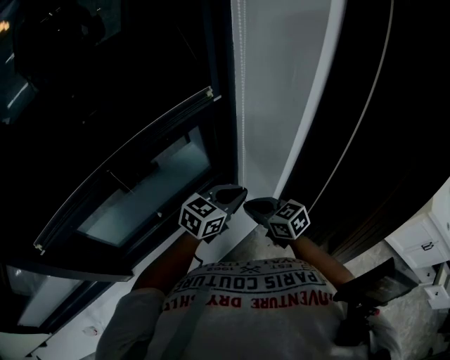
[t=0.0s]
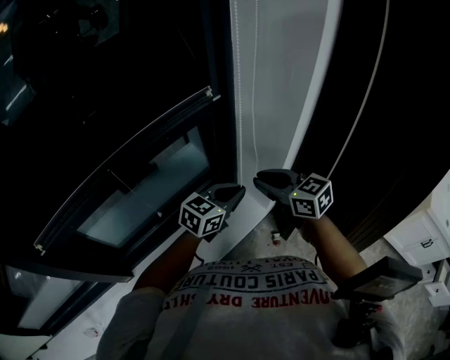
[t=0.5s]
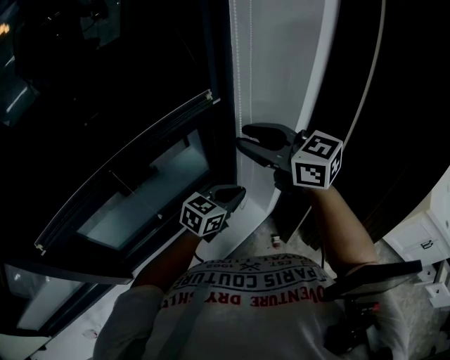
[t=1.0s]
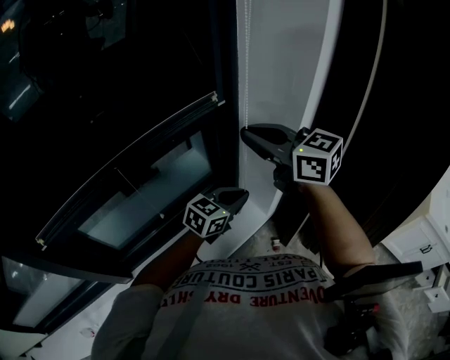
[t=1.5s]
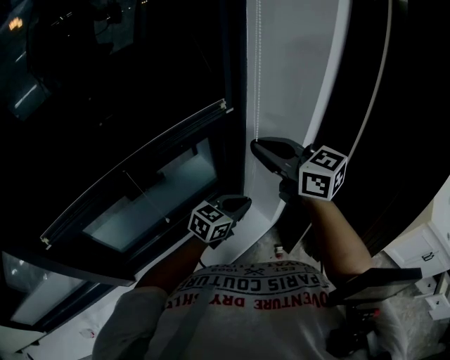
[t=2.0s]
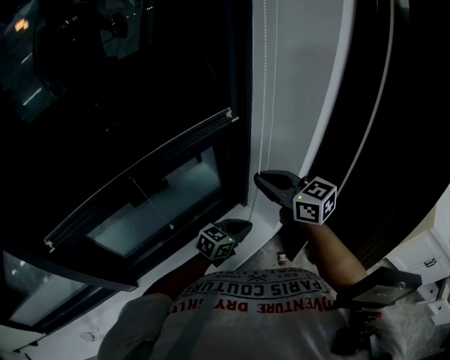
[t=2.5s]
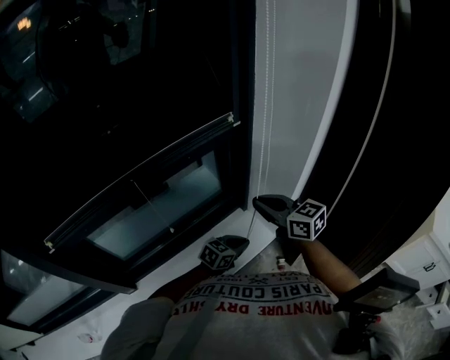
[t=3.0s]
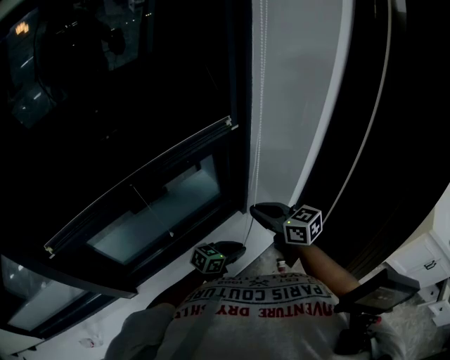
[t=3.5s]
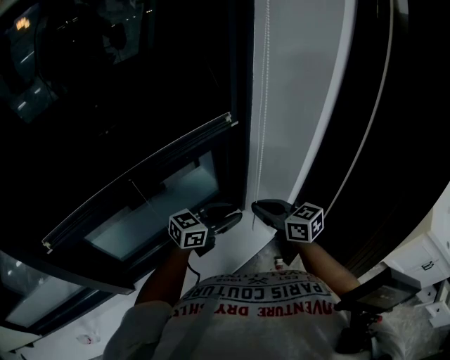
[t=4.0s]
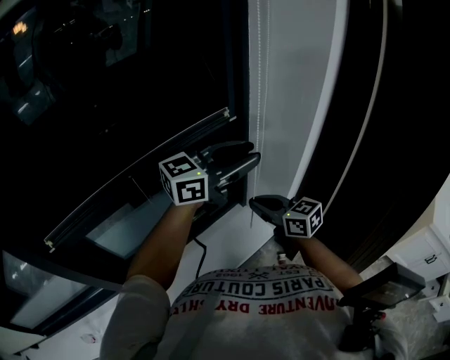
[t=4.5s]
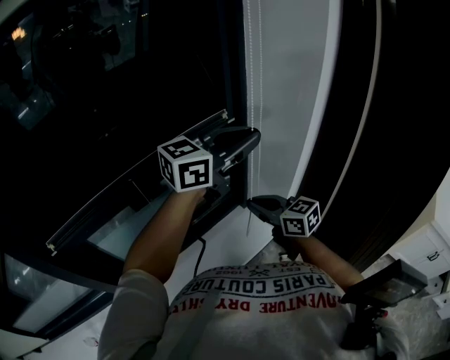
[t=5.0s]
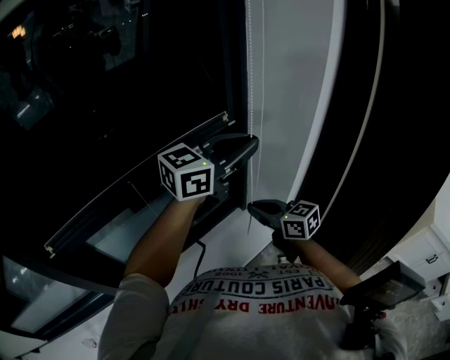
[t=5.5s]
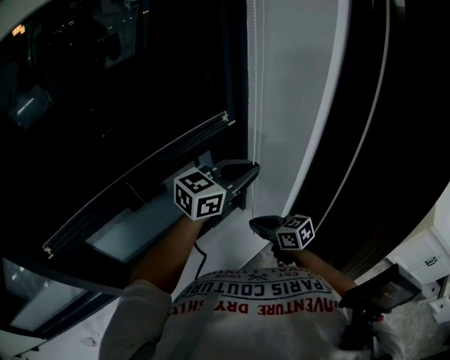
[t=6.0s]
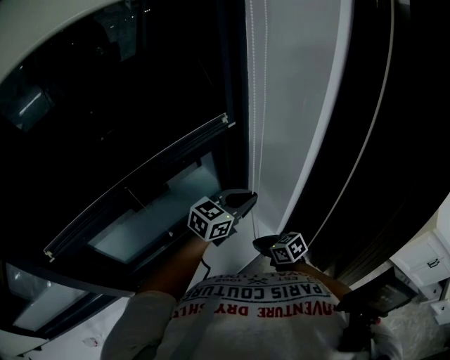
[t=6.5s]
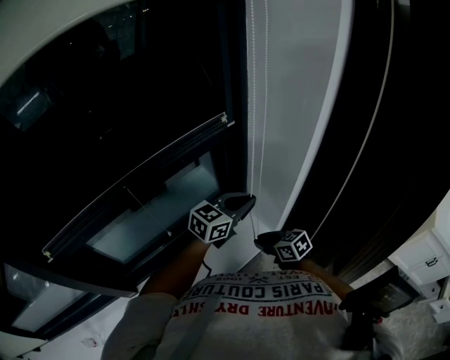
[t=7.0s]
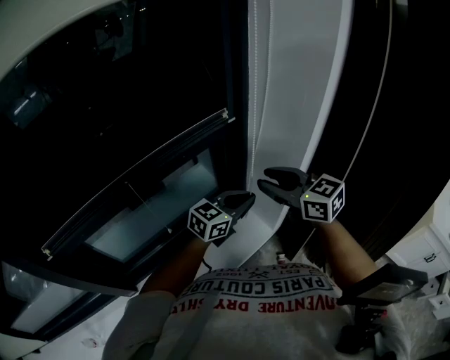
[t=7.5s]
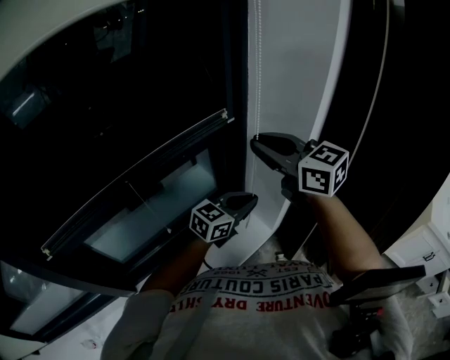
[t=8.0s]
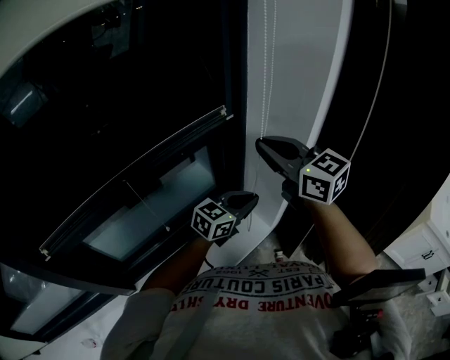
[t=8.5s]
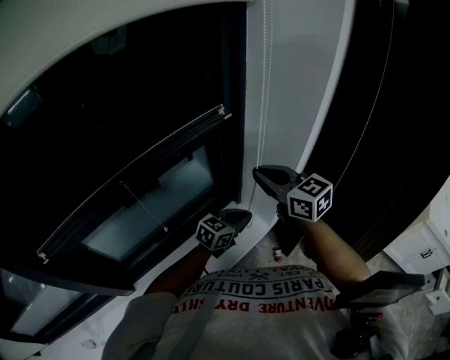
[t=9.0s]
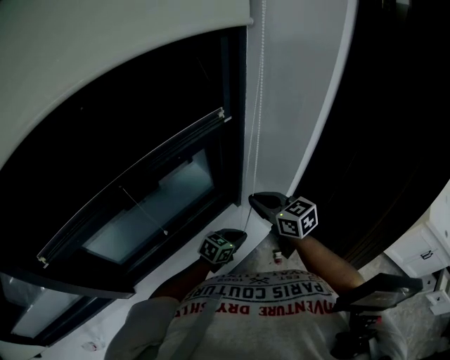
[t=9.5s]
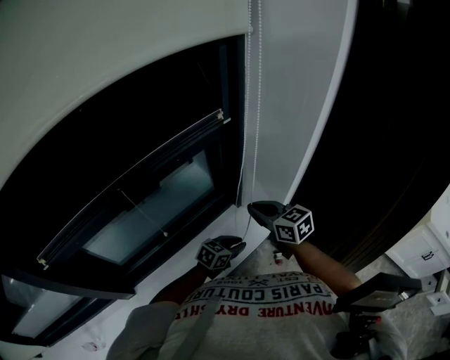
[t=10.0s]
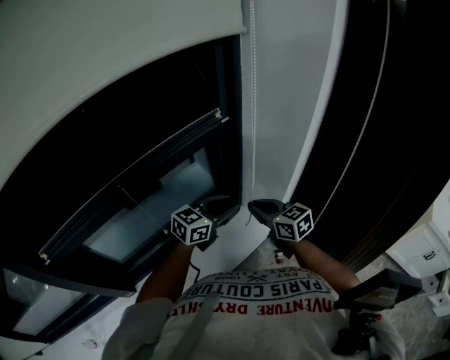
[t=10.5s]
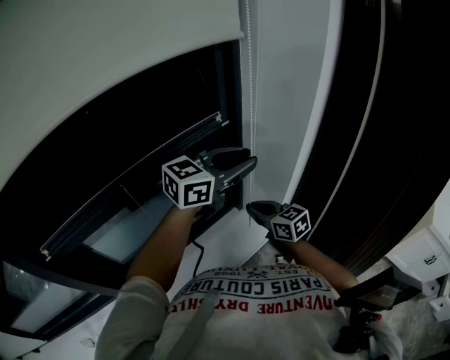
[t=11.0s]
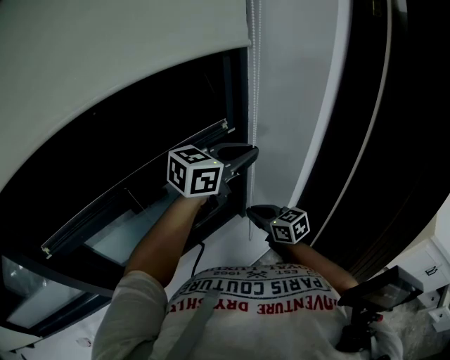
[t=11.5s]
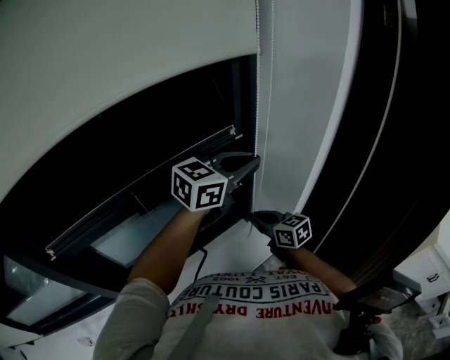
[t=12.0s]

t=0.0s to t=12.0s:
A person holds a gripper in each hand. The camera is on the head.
t=0.0s to t=2.0s: The right gripper shifts some 30 cm upward, swivels approximately 30 degrees, and opens, then closes once more.
t=2.0s to t=4.0s: The left gripper travels downward and back again, approximately 15 cm each way, and opens its fingers. Meanwhile the right gripper is displaced downward by about 20 cm.
t=4.0s to t=6.0s: The left gripper heads upward, covering roughly 15 cm, and closes its fingers. The right gripper moves downward, some 10 cm.
t=6.0s to t=8.0s: The left gripper travels downward by roughly 15 cm, while the right gripper goes about 30 cm upward, rotates about 30 degrees, and opens, then closes once more.
t=8.0s to t=10.0s: The grippers both shift downward by about 25 cm. The left gripper swivels some 30 degrees, while the right gripper swivels some 20 degrees.
t=10.0s to t=12.0s: The left gripper moves upward, approximately 40 cm, and changes its angle by about 30 degrees.

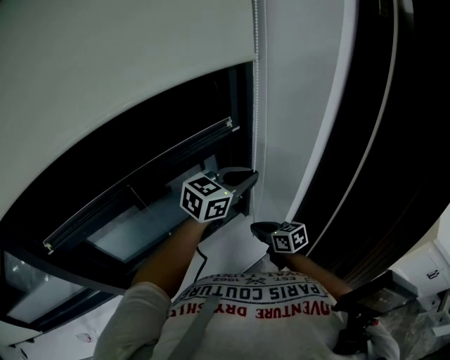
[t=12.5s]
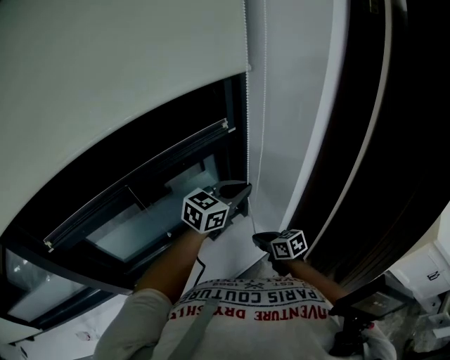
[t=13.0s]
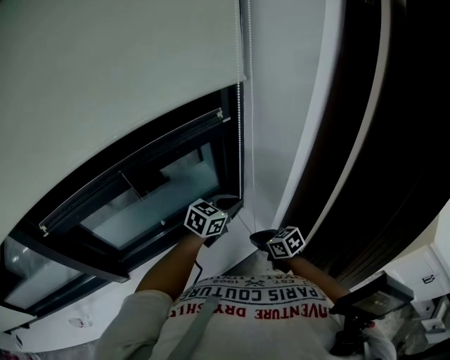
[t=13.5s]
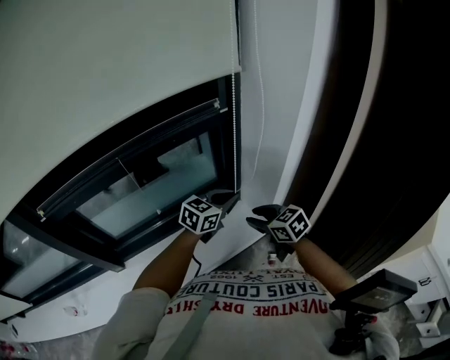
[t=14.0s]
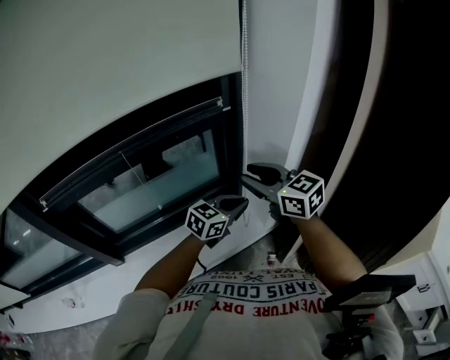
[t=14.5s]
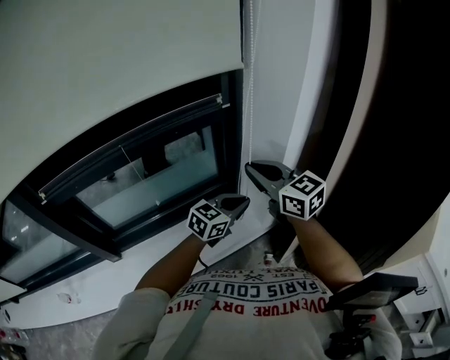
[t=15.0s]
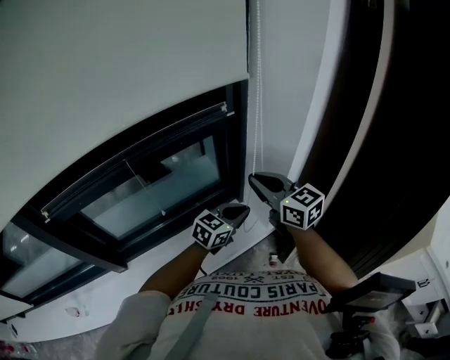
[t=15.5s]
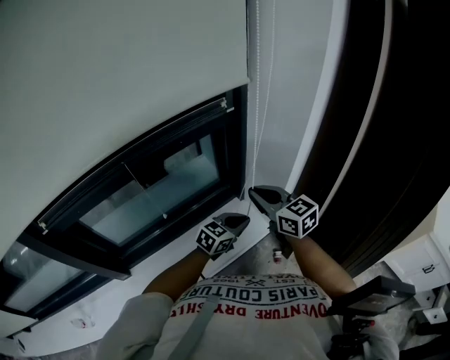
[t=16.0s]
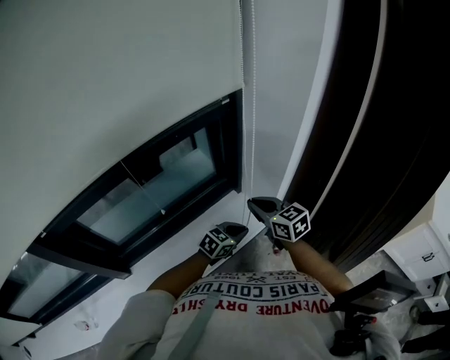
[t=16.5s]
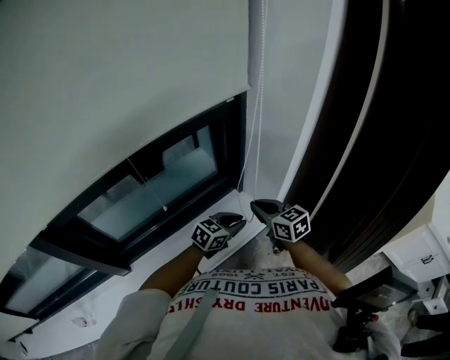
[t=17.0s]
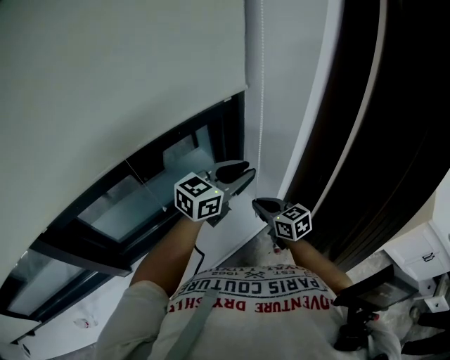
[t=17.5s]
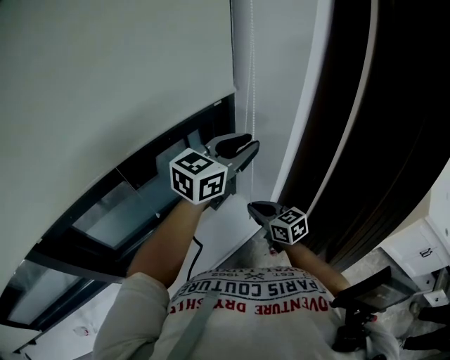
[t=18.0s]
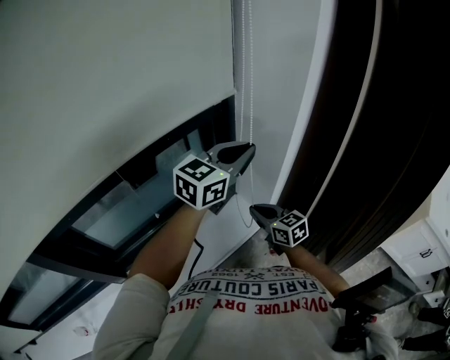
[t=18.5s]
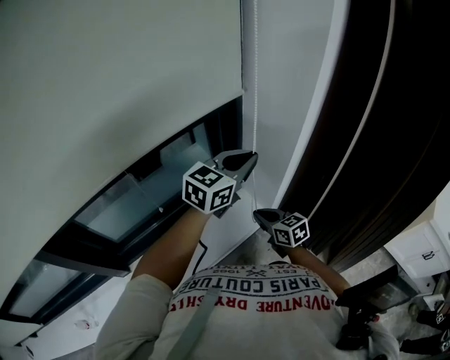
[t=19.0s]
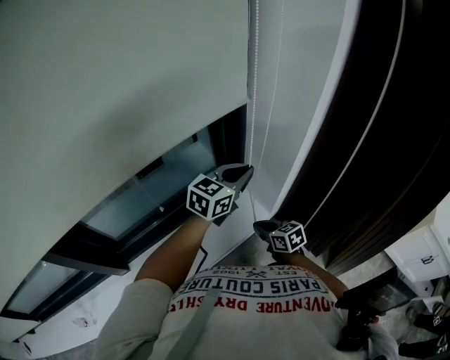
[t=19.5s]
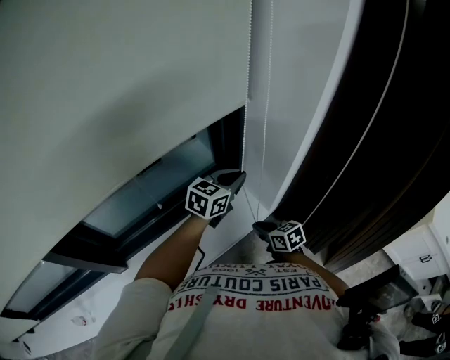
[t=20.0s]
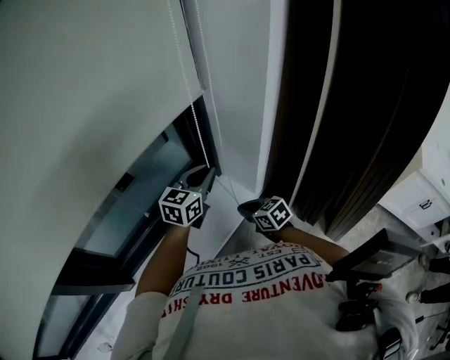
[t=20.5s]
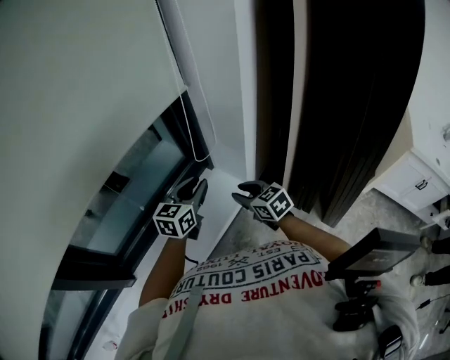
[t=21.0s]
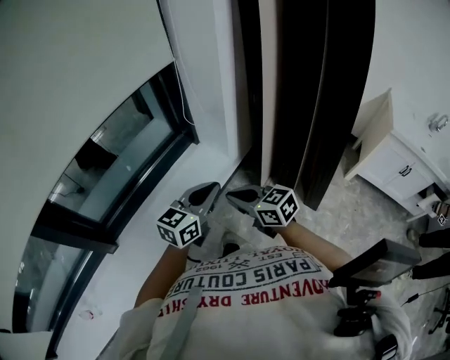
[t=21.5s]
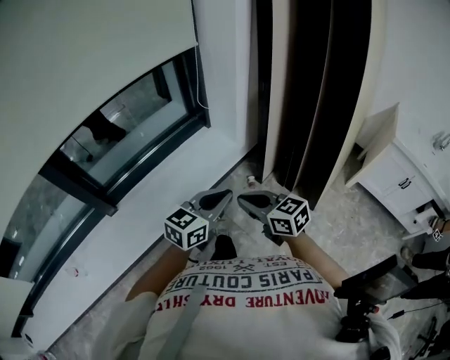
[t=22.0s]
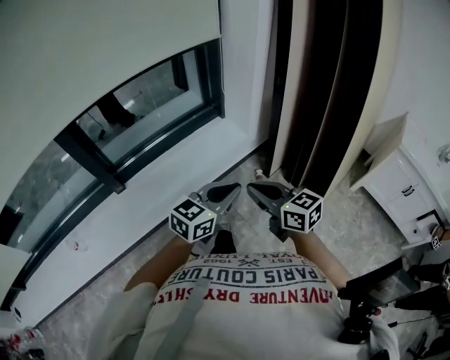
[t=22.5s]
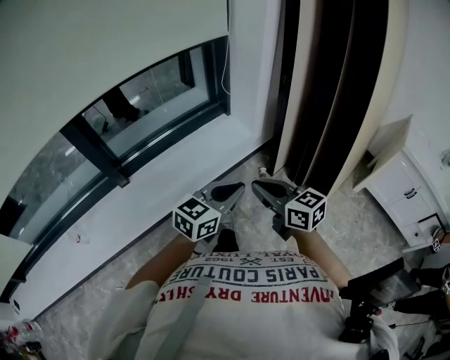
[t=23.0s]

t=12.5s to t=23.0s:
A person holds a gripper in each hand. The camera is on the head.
t=12.5s to t=14.5s: The right gripper moves upward, some 20 cm, swivels about 30 degrees, and opens, while the left gripper goes approximately 15 cm downward and backward.
t=14.5s to t=16.5s: The grippers both shift downward by about 15 cm. The right gripper closes up.
t=16.5s to t=19.0s: The right gripper shifts roughly 10 cm downward; the left gripper is displaced upward by approximately 30 cm, rotates roughly 30 degrees, and opens, then closes again.
t=19.0s to t=21.0s: The right gripper opens its fingers; the left gripper goes about 15 cm downward, and opens its fingers.
t=21.0s to t=23.0s: The pair of grippers is taken backward, roughly 50 cm. The left gripper closes up, while the right gripper turns by about 20 degrees, and closes.

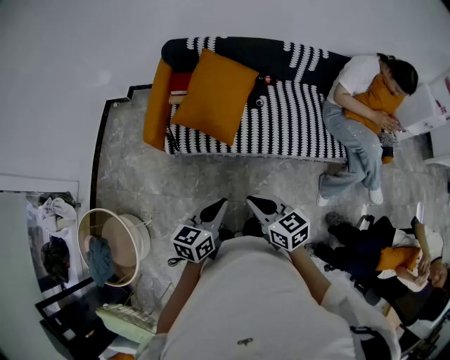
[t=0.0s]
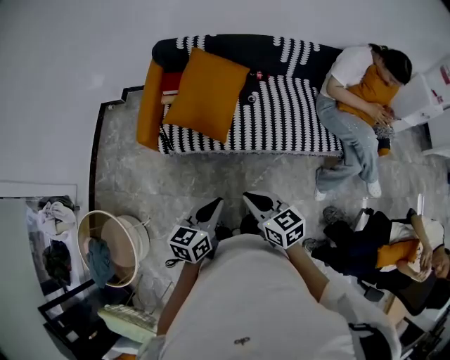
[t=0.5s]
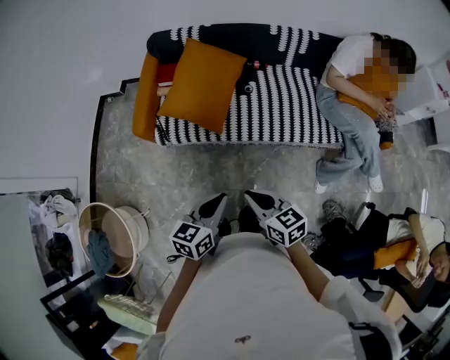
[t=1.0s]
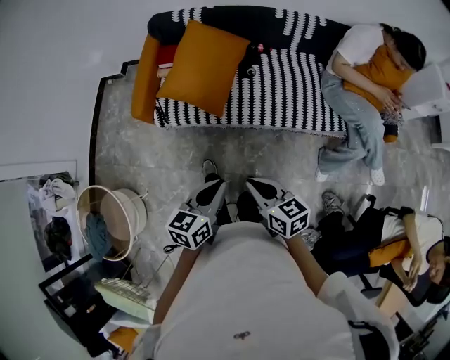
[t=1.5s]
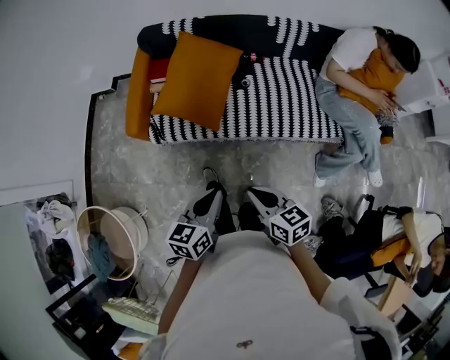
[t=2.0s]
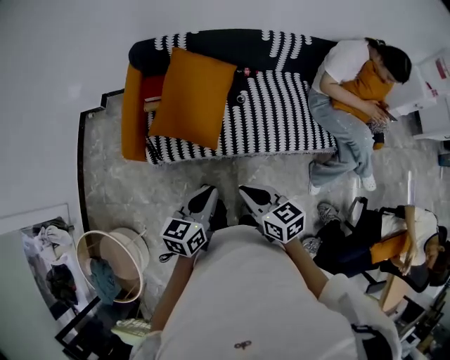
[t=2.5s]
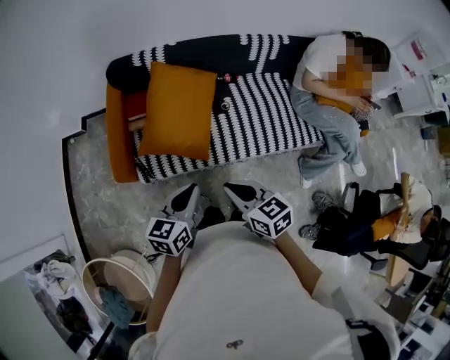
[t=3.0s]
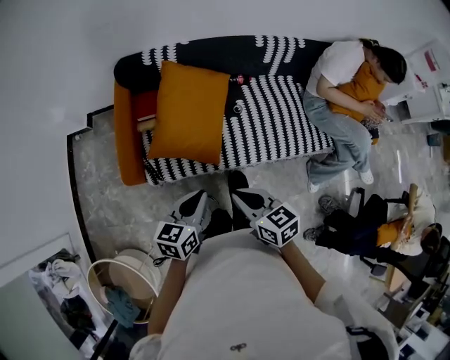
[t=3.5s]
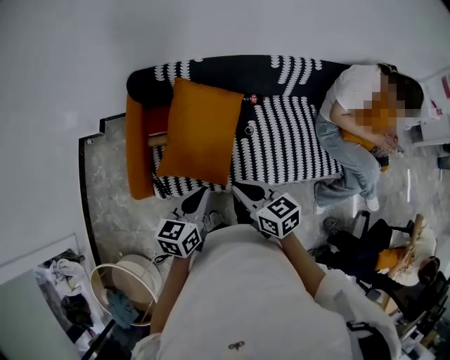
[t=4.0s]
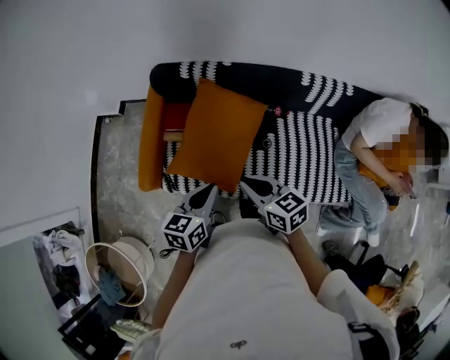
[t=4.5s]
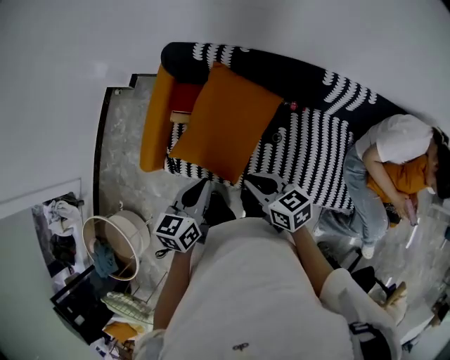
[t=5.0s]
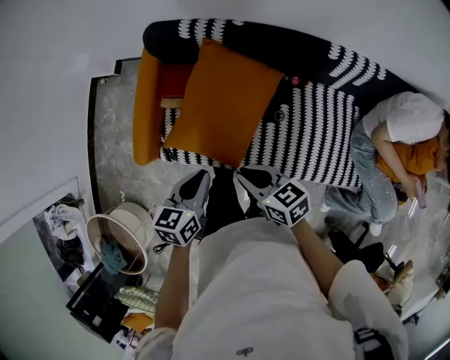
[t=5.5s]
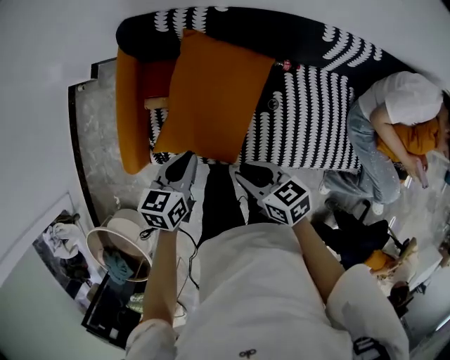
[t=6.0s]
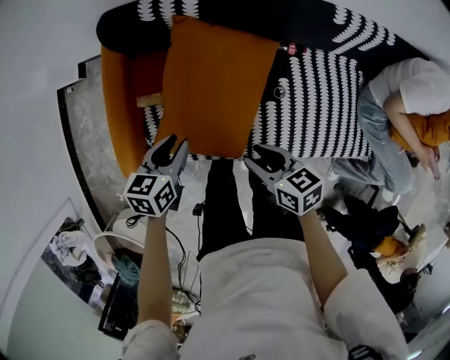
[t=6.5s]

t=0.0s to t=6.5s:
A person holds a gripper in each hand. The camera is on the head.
t=0.0s to t=2.0s: Both grippers move to the right, roughly 5 cm.
t=2.0s to t=4.5s: Both grippers move forward, some 40 cm.
t=4.5s to t=6.5s: The left gripper is displaced downward and forward by roughly 25 cm, while the right gripper moves downward, some 20 cm.
